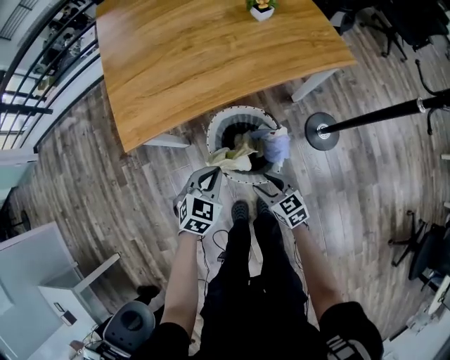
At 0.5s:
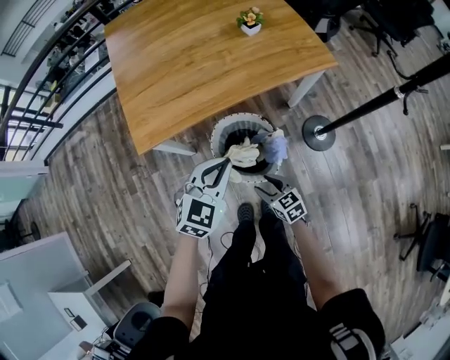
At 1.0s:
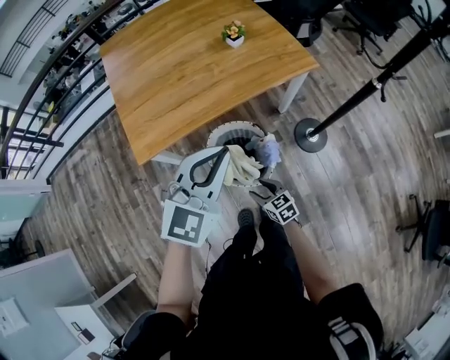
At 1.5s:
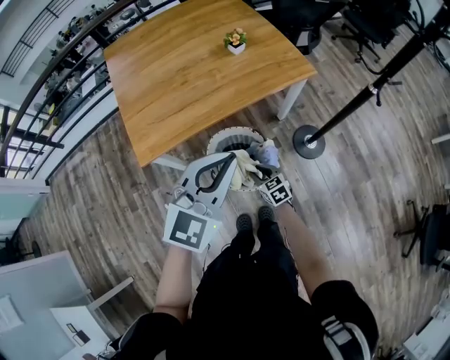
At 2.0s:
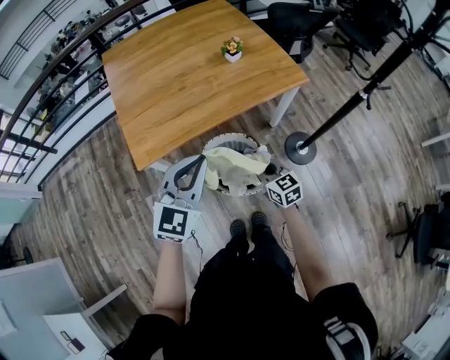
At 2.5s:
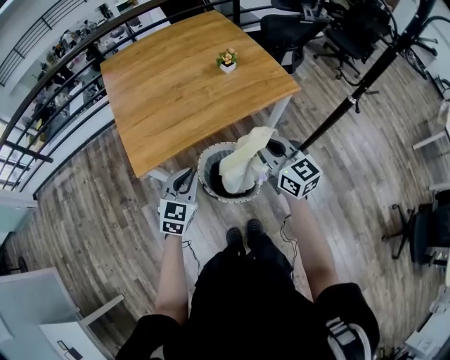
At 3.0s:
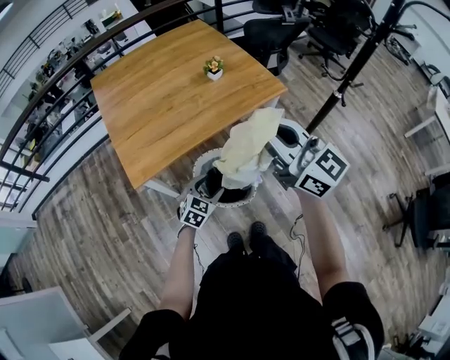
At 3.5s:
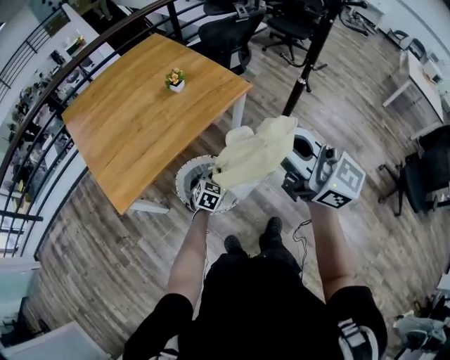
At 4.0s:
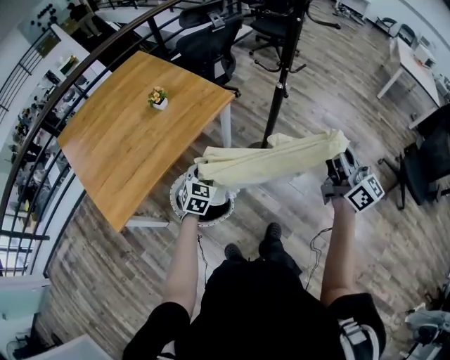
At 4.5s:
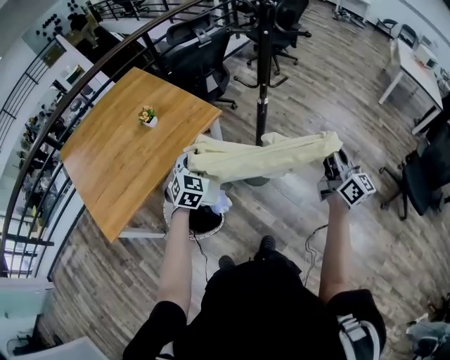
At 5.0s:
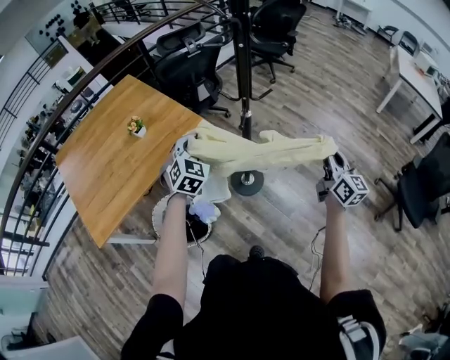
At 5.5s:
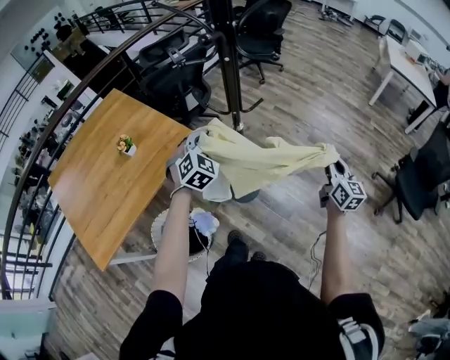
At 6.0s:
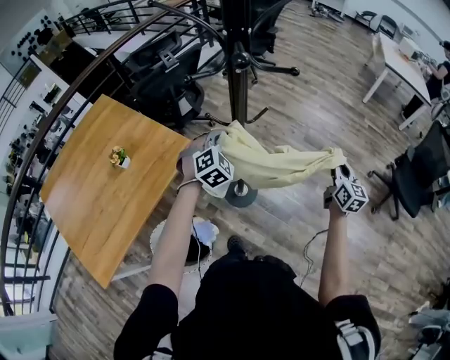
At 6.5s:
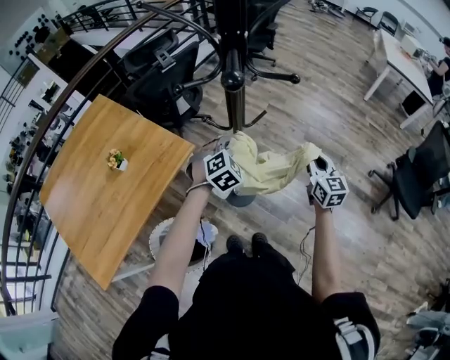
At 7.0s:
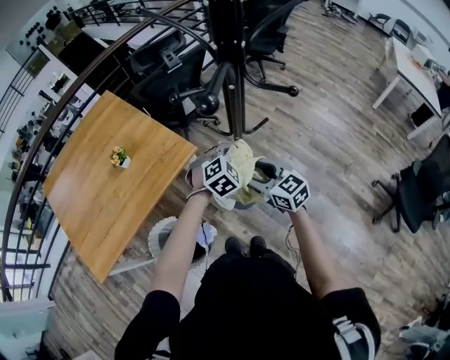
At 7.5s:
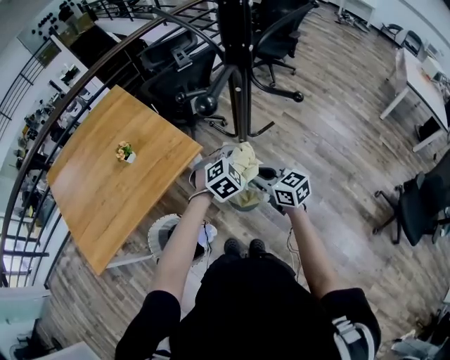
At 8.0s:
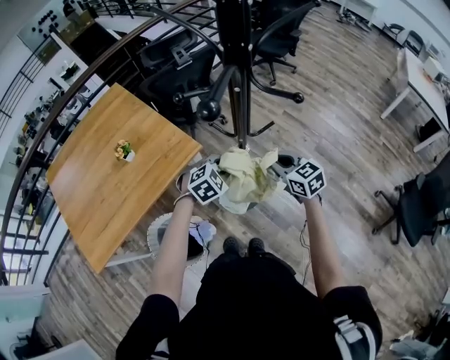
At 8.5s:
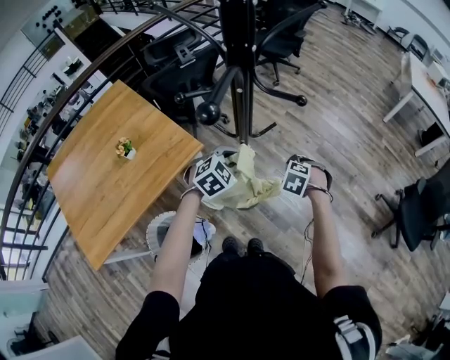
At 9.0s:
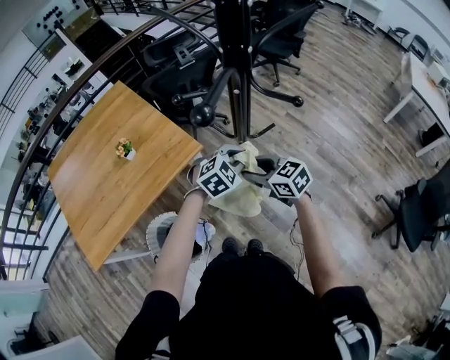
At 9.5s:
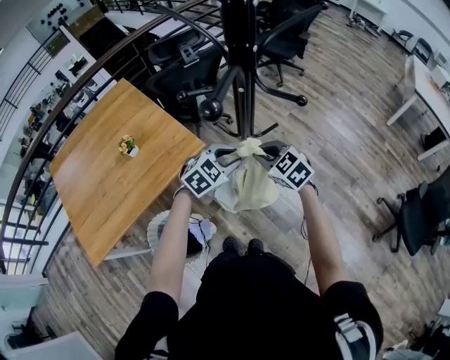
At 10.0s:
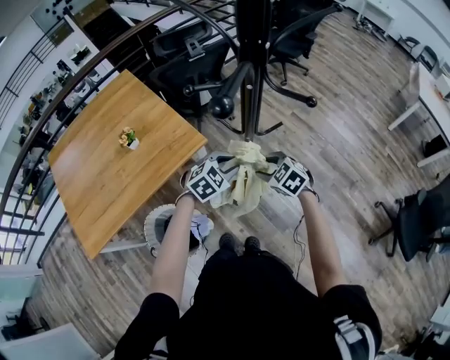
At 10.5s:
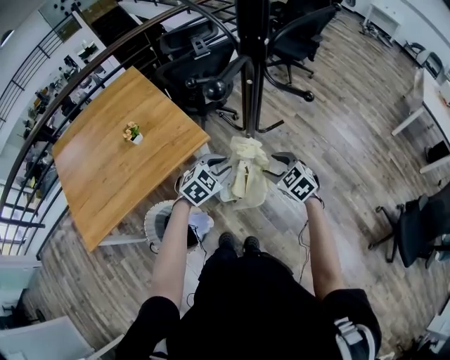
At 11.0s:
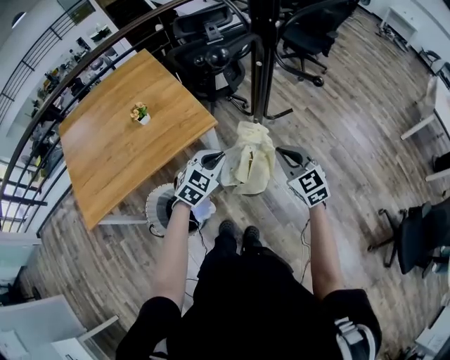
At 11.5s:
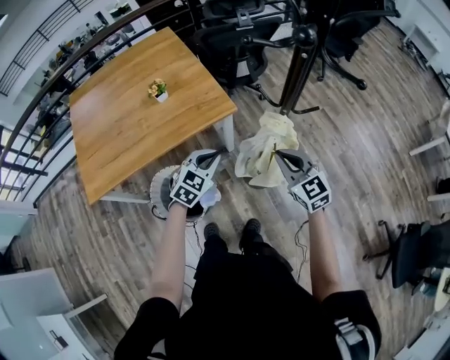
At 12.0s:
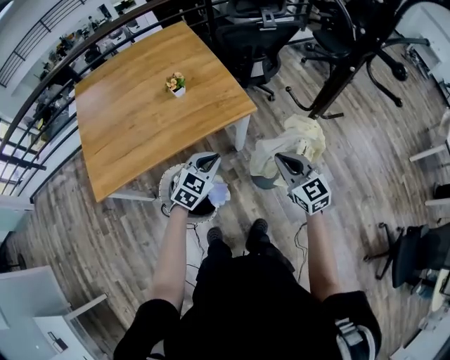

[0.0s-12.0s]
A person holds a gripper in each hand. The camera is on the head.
0.0s to 2.0s: The left gripper heads upward, covering approximately 30 cm, and points its fingers about 30 degrees further upward, while the right gripper goes some 15 cm upward, and closes its fingers.
2.0s to 4.0s: The right gripper ends up about 50 cm from where it was, and tips its fingers upward by about 40 degrees. Meanwhile the left gripper ends up approximately 30 cm from where it was, turns by some 20 degrees, and opens, then closes again.
4.0s to 6.0s: The left gripper moves forward and to the right, about 40 cm, and rotates approximately 40 degrees. Meanwhile the right gripper heads to the right, forward and downward, covering approximately 40 cm, and changes its angle by some 40 degrees.
6.0s to 8.0s: The right gripper changes place by roughly 25 cm, turns by approximately 60 degrees, and opens, then closes once more. Meanwhile the left gripper goes roughly 5 cm downward, and rotates some 20 degrees.
8.0s to 10.0s: The right gripper goes up and down, some 10 cm each way, reversing 2 times, changes its angle by roughly 30 degrees, and opens its fingers.
10.0s to 12.0s: The left gripper moves to the left, some 25 cm, changes its angle by some 30 degrees, and closes up. The right gripper moves to the left, backward and upward, approximately 15 cm, changes its angle by approximately 30 degrees, and closes up.

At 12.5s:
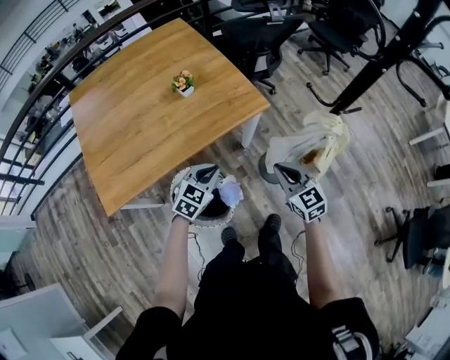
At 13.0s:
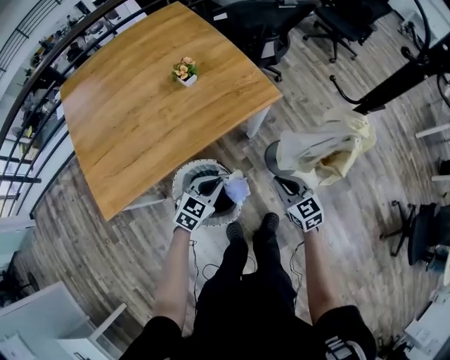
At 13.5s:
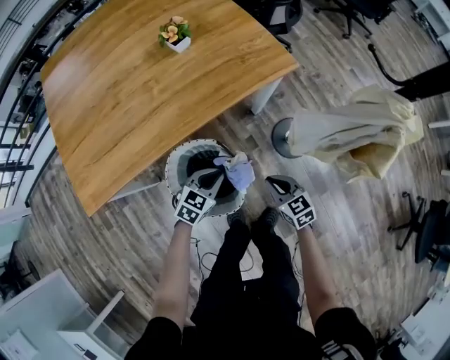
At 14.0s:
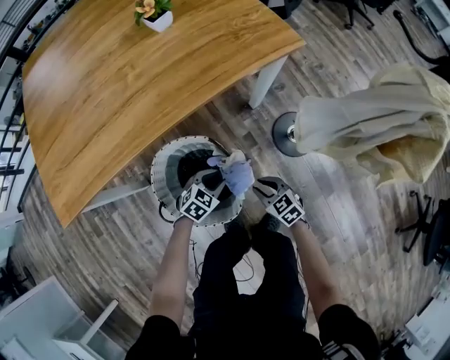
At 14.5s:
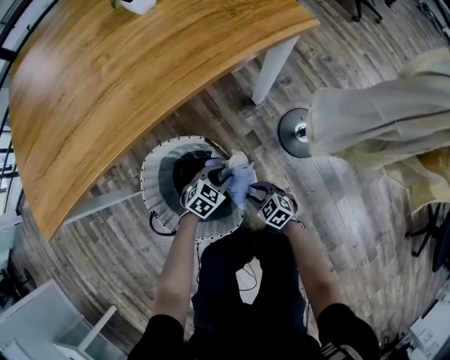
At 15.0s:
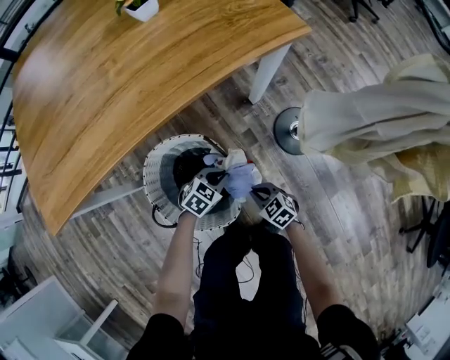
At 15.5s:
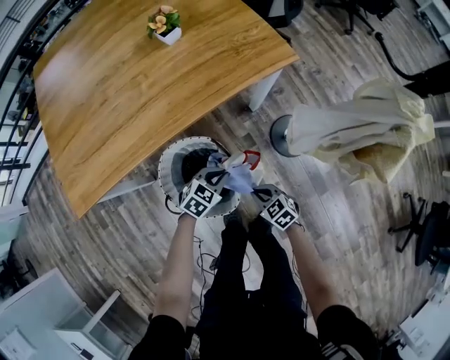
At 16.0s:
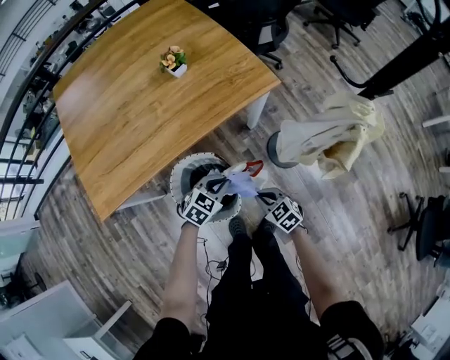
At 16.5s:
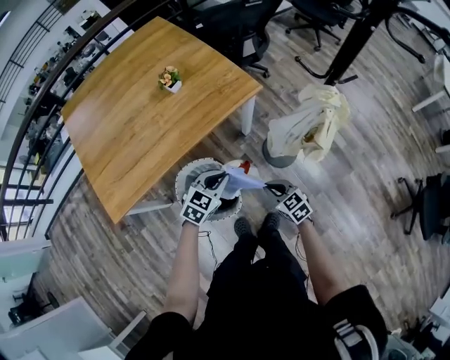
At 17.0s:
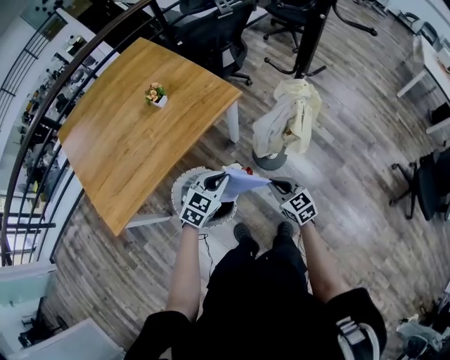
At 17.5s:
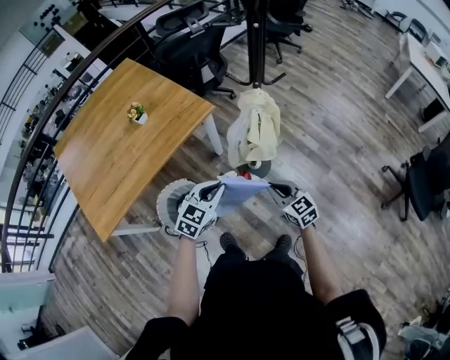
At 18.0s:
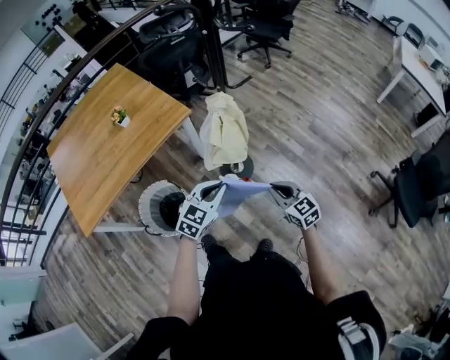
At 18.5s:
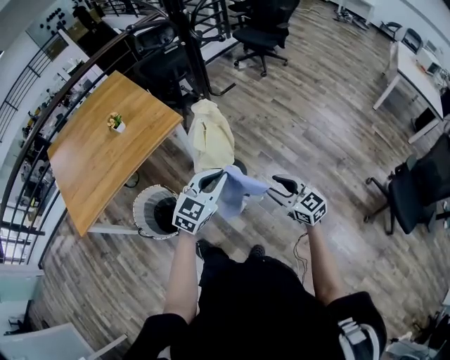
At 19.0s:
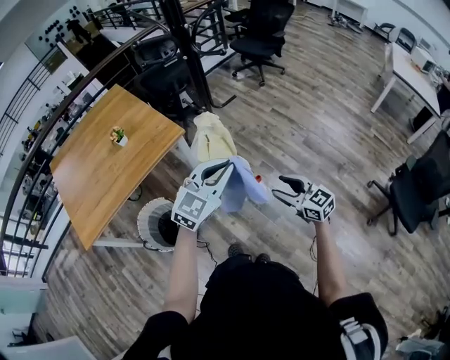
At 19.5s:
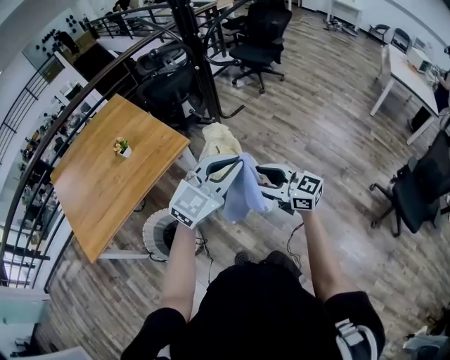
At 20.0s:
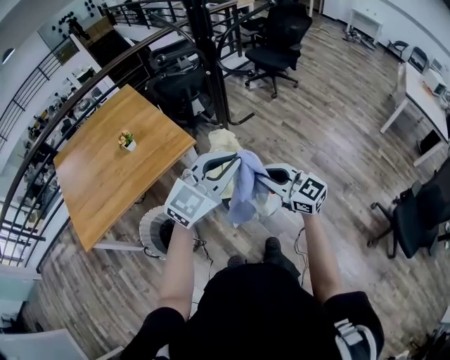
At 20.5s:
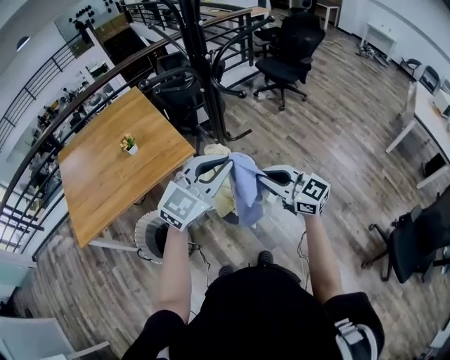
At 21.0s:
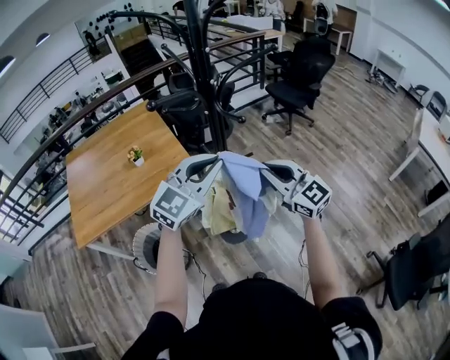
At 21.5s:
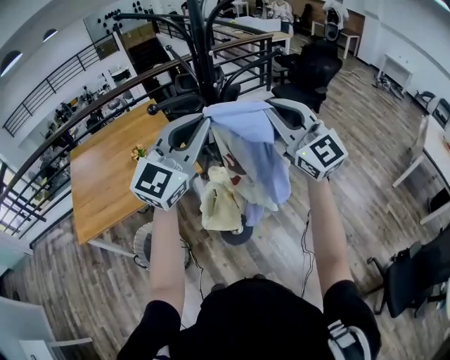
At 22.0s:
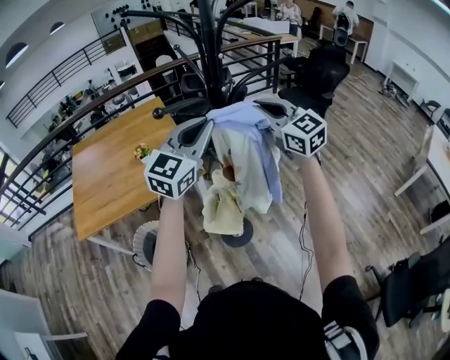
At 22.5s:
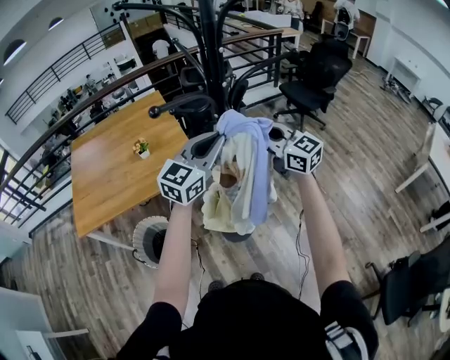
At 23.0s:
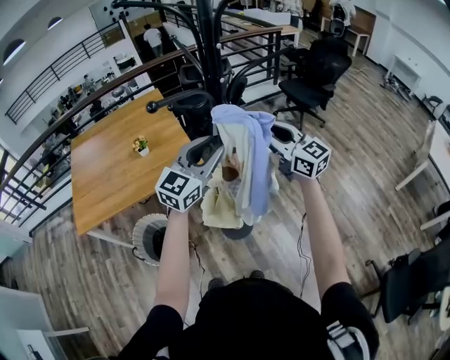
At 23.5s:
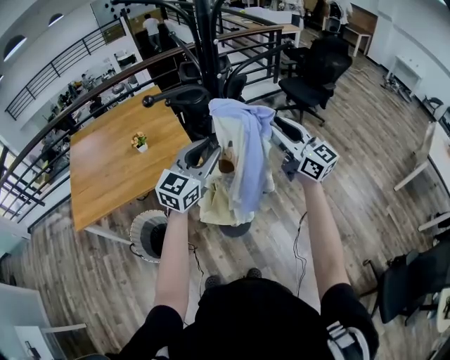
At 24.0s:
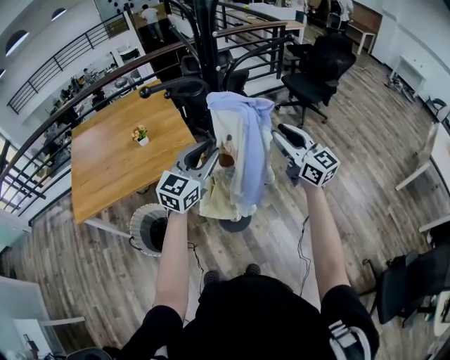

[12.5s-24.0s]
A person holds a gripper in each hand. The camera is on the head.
12.5s to 14.5s: The two grippers go approximately 60 cm downward. The right gripper swivels about 40 degrees, and opens, while the left gripper swivels approximately 20 degrees, and opens its fingers.
14.5s to 16.5s: Both grippers travel together upward, roughly 50 cm. The right gripper swivels about 20 degrees, and closes its fingers, while the left gripper closes its fingers.
16.5s to 18.5s: The grippers both shift to the right and upward by about 40 cm. The left gripper swivels approximately 20 degrees; the right gripper changes its angle by some 20 degrees, and opens.
18.5s to 20.0s: The right gripper travels upward, forward and to the left by roughly 20 cm, and closes. Meanwhile the left gripper heads upward and forward, covering about 20 cm.
20.0s to 22.0s: The right gripper moves upward and forward, roughly 35 cm. Meanwhile the left gripper is displaced forward and upward by roughly 20 cm, and turns by some 30 degrees.
22.0s to 24.0s: The left gripper travels downward by some 15 cm, and opens. Meanwhile the right gripper shifts approximately 15 cm downward, to the right and backward, changes its angle by roughly 20 degrees, and opens its fingers.

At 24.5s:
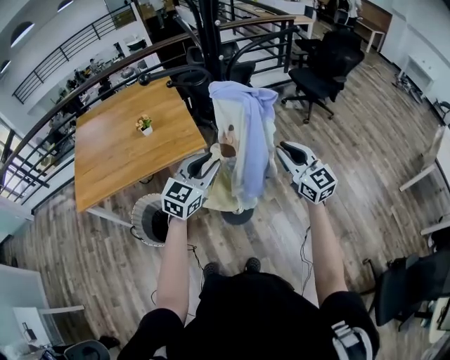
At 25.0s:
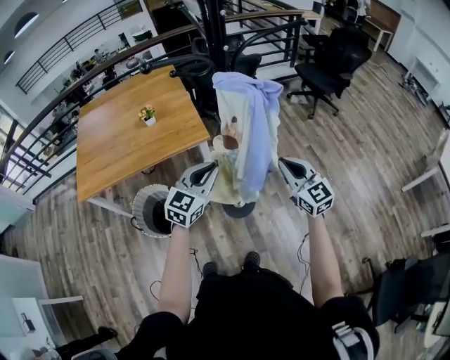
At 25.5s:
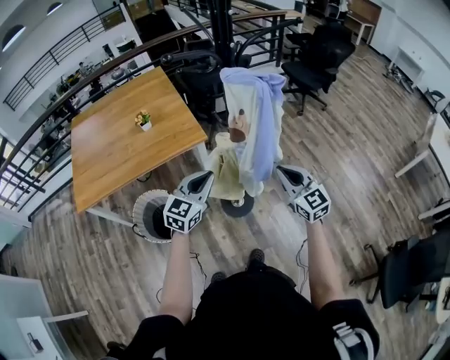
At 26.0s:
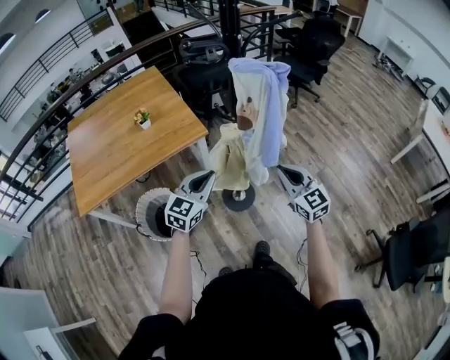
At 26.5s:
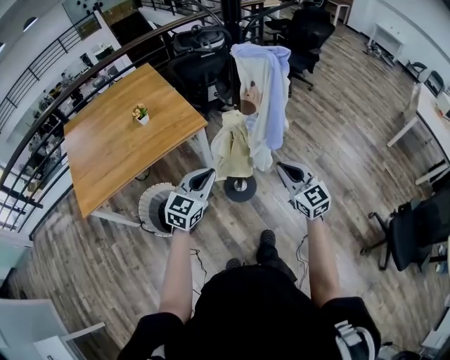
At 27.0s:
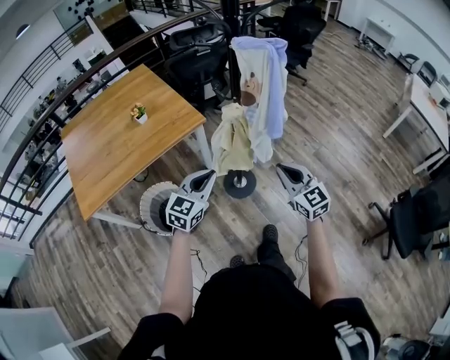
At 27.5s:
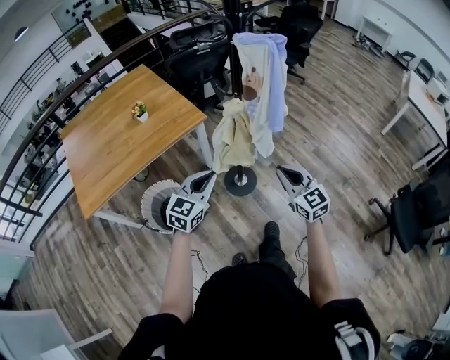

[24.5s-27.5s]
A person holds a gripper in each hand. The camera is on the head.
24.5s to 26.0s: The grippers both shift backward, to the left and downward by some 15 cm. The left gripper closes its fingers.
26.0s to 27.5s: The two grippers go some 10 cm backward.
